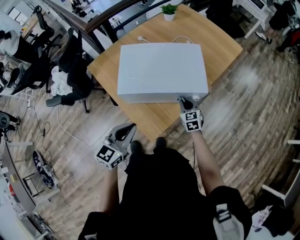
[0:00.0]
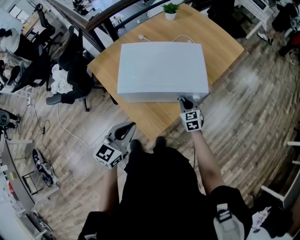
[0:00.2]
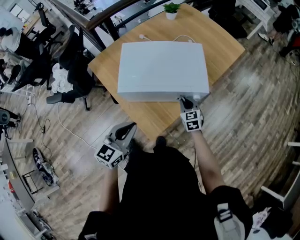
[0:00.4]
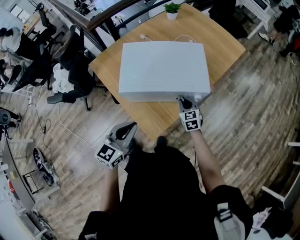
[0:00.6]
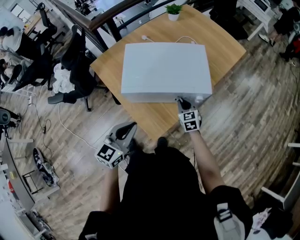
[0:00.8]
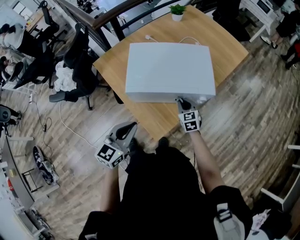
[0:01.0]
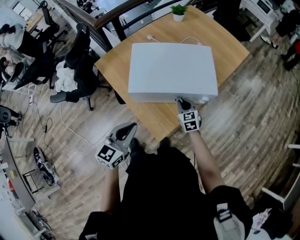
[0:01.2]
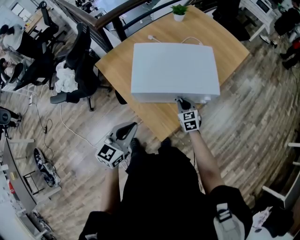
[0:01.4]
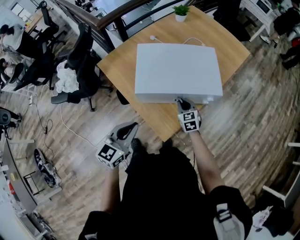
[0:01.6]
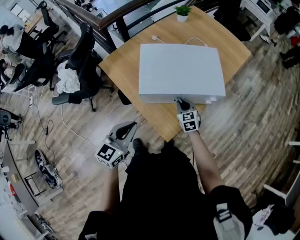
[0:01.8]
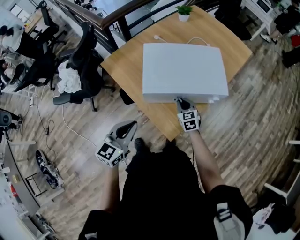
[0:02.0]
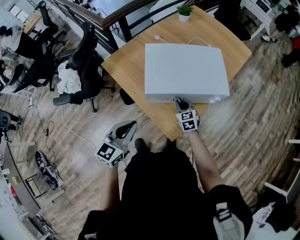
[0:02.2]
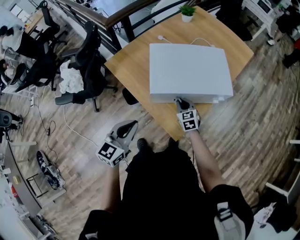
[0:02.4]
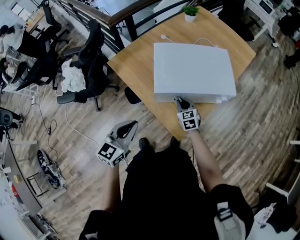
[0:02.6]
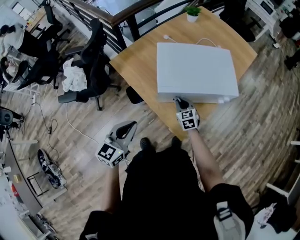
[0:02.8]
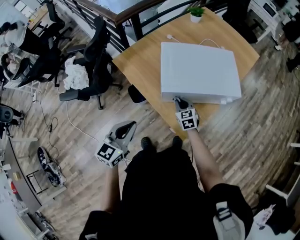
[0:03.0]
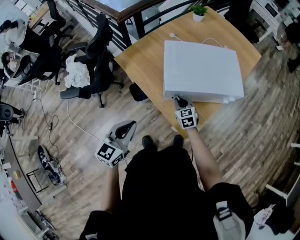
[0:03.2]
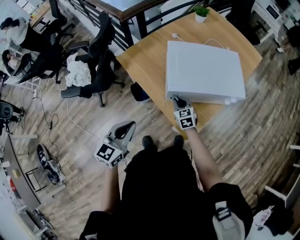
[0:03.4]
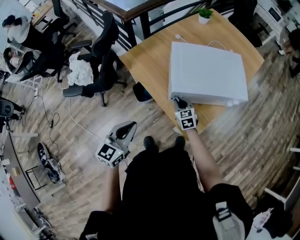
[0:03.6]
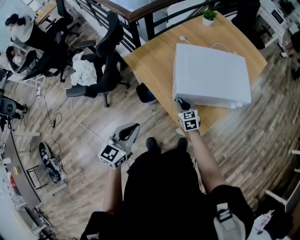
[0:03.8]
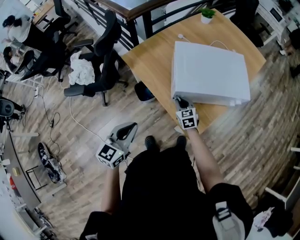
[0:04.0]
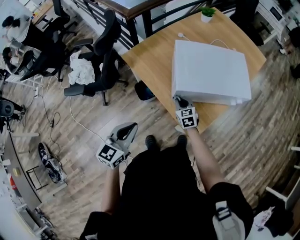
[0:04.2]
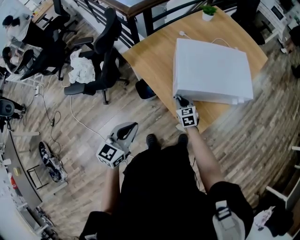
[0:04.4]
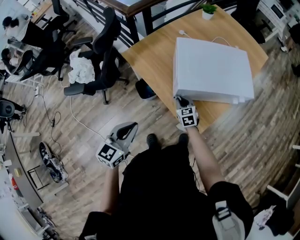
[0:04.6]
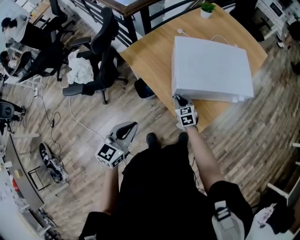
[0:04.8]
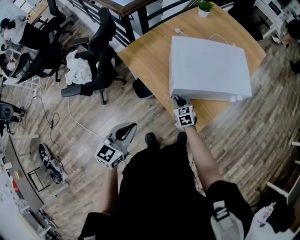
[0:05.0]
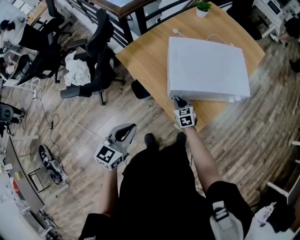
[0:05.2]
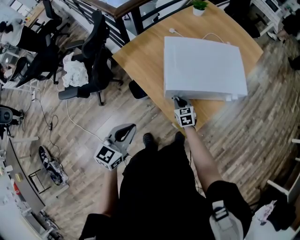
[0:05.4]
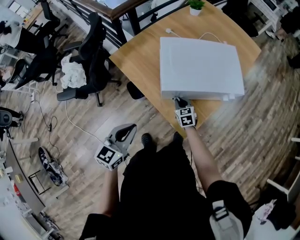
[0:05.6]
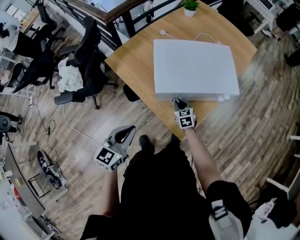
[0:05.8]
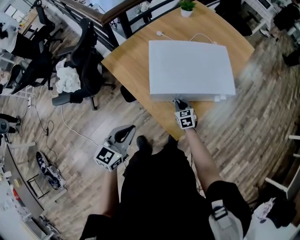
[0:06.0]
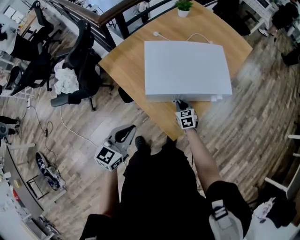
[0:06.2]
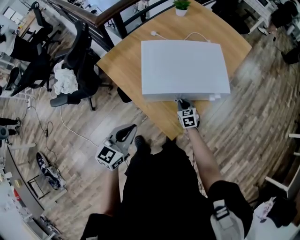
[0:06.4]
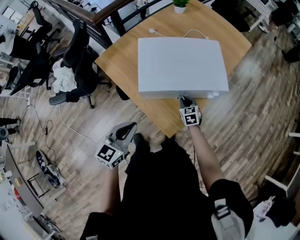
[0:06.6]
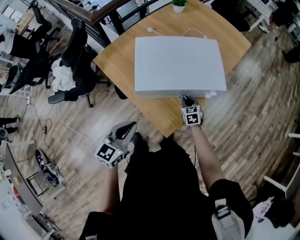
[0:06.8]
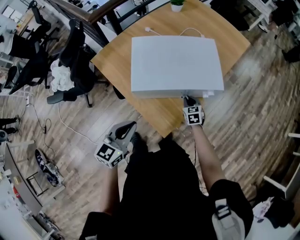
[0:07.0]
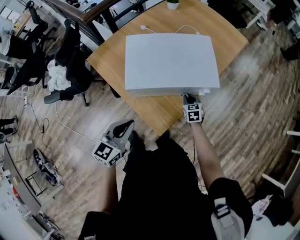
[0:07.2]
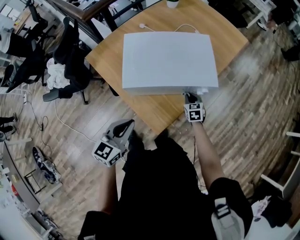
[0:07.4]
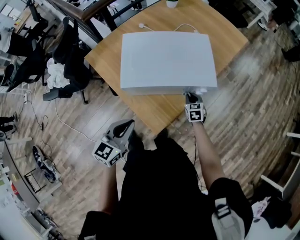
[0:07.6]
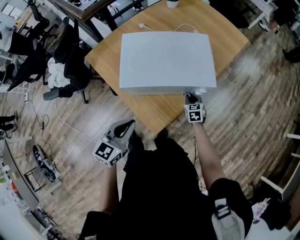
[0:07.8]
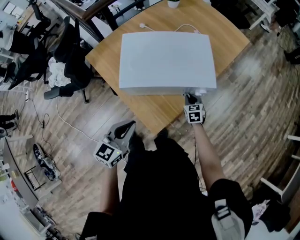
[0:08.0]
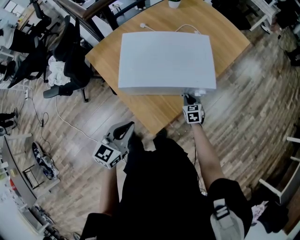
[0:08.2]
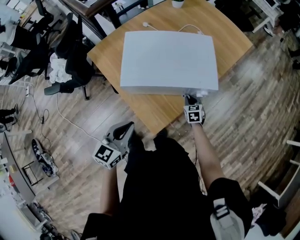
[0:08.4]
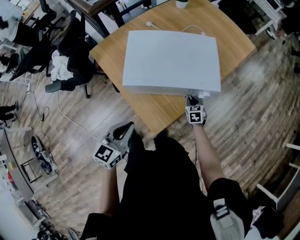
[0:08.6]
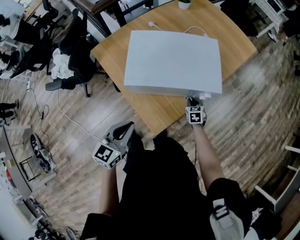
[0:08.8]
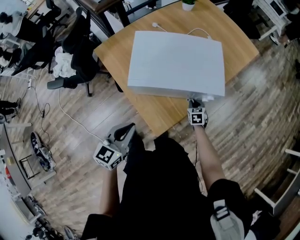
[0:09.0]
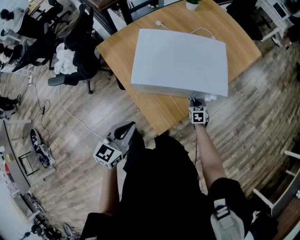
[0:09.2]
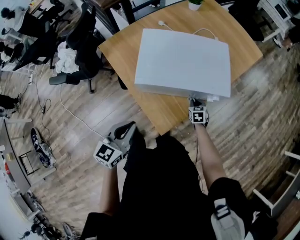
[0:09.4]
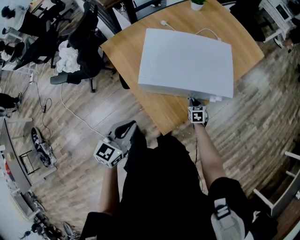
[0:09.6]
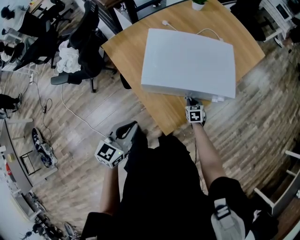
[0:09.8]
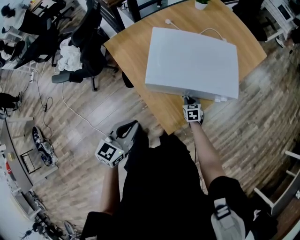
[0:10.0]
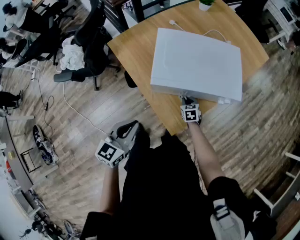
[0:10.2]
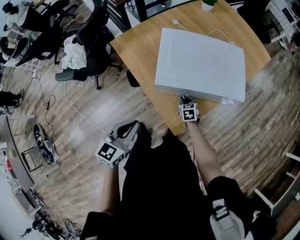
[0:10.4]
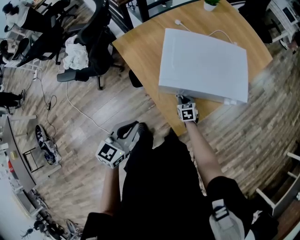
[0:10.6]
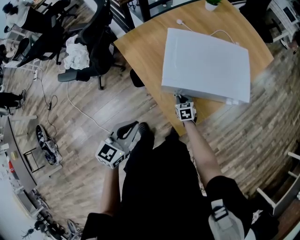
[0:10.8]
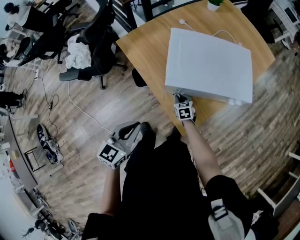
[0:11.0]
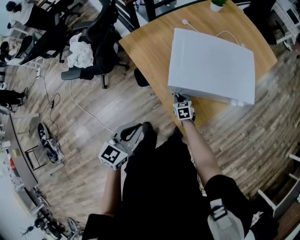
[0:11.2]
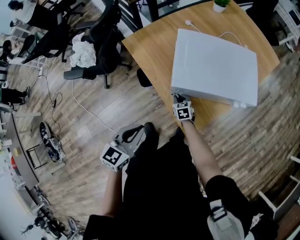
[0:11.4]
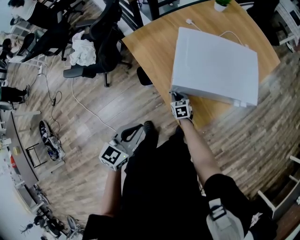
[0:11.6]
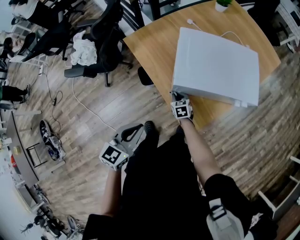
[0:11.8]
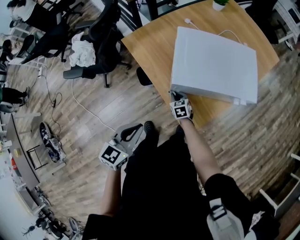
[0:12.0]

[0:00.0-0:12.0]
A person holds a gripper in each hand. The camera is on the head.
0.0 to 1.6 s: Both grippers move to the left, roughly 10 cm.
1.6 to 3.0 s: The two grippers go about 15 cm to the left.
3.0 to 4.4 s: Both grippers move to the left, some 5 cm.
4.4 to 6.0 s: The grippers both shift to the right by roughly 10 cm.
6.0 to 7.6 s: Both grippers travel together to the right, about 15 cm.
7.6 to 9.0 s: The grippers make only small movements.
9.0 to 10.4 s: The right gripper shifts about 20 cm to the left; the left gripper goes approximately 10 cm to the left.
10.4 to 12.0 s: The right gripper goes approximately 15 cm to the left. Meanwhile the left gripper moves to the left, about 5 cm.

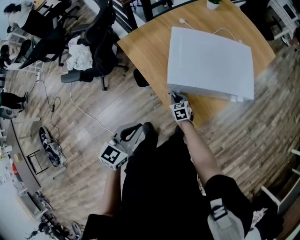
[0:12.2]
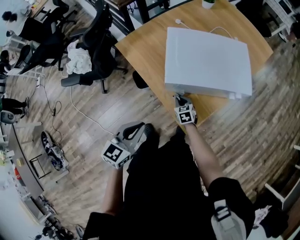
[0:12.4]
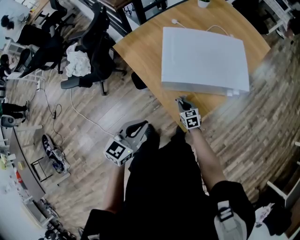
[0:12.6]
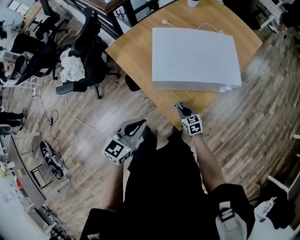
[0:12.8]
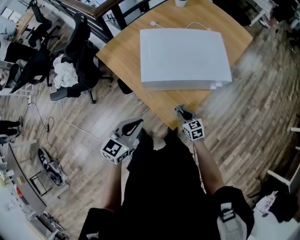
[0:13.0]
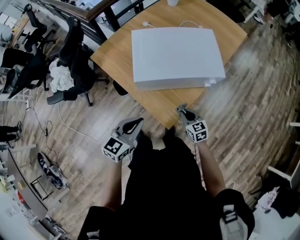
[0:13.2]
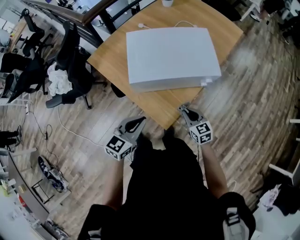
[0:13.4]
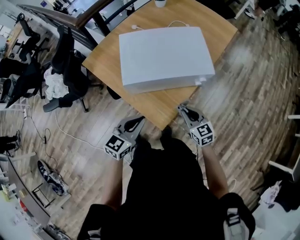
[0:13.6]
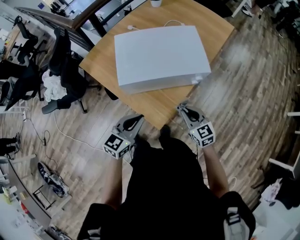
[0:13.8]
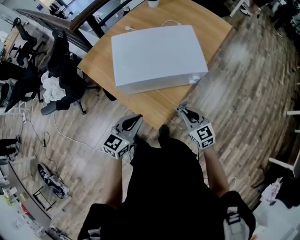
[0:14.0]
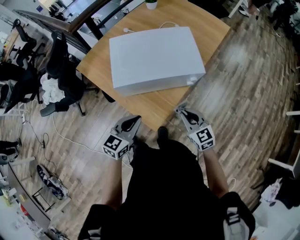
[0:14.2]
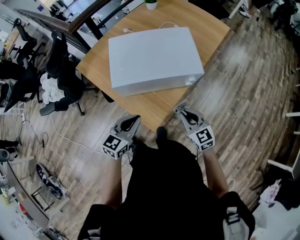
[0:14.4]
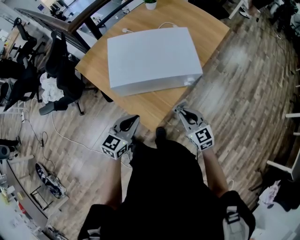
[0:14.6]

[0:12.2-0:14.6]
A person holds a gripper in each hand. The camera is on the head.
12.2 to 13.4 s: The right gripper moves to the right and upward, approximately 25 cm; the left gripper travels to the right by about 15 cm.
13.4 to 14.6 s: The right gripper moves upward and to the right, some 10 cm. The left gripper shifts about 5 cm to the right.

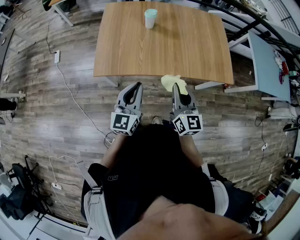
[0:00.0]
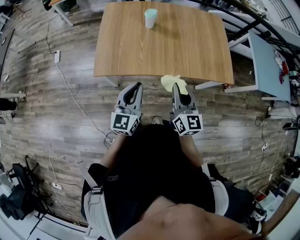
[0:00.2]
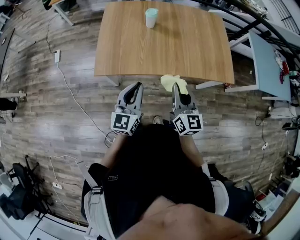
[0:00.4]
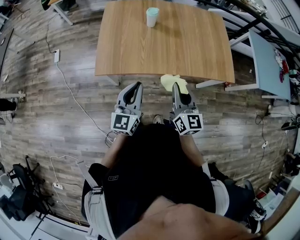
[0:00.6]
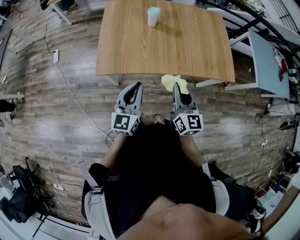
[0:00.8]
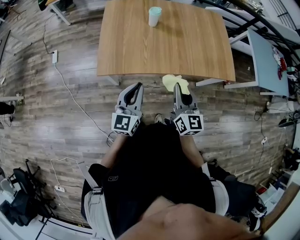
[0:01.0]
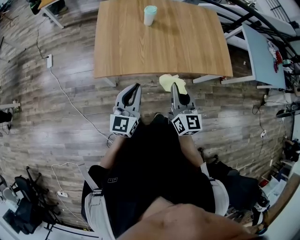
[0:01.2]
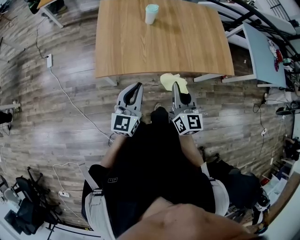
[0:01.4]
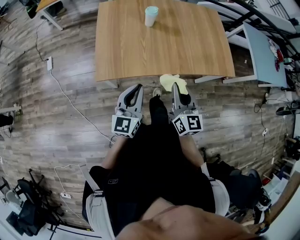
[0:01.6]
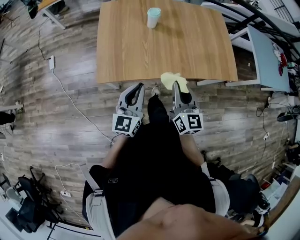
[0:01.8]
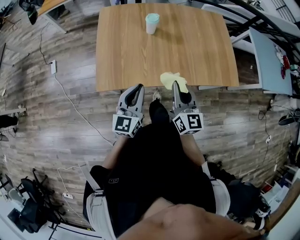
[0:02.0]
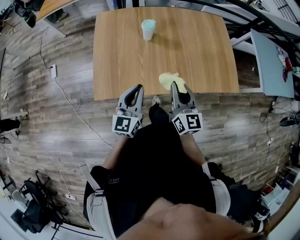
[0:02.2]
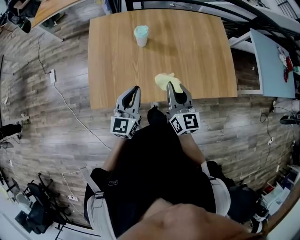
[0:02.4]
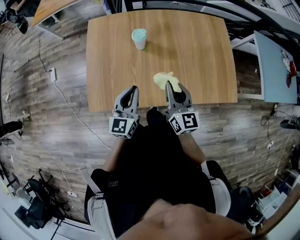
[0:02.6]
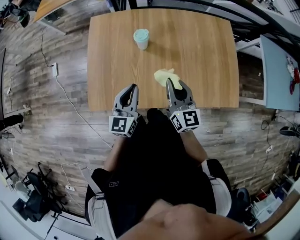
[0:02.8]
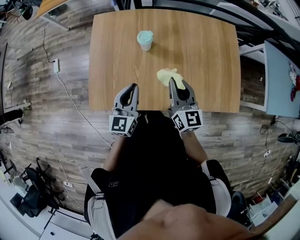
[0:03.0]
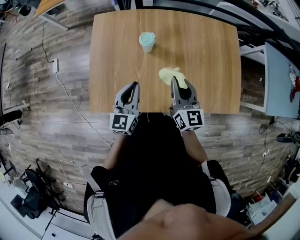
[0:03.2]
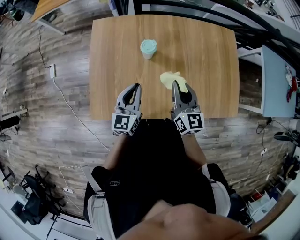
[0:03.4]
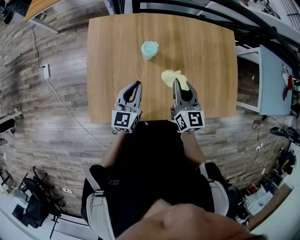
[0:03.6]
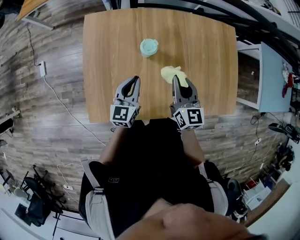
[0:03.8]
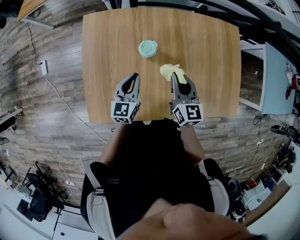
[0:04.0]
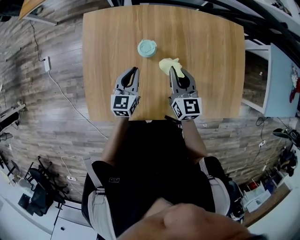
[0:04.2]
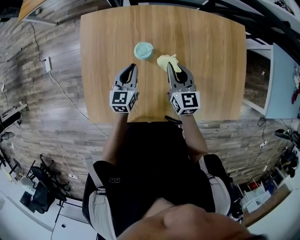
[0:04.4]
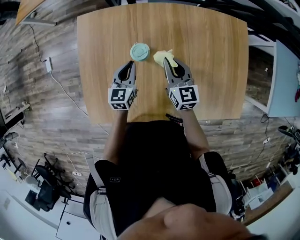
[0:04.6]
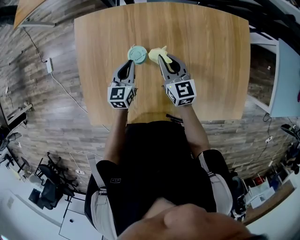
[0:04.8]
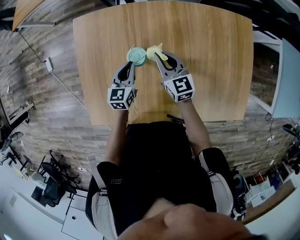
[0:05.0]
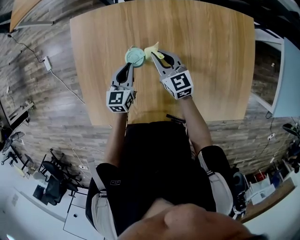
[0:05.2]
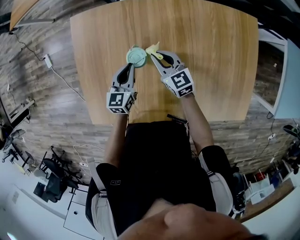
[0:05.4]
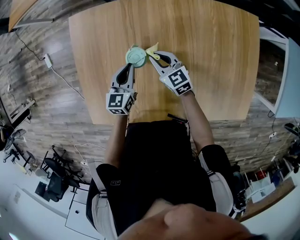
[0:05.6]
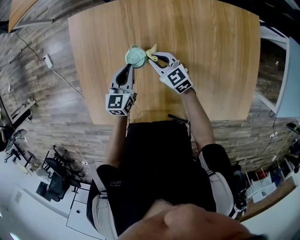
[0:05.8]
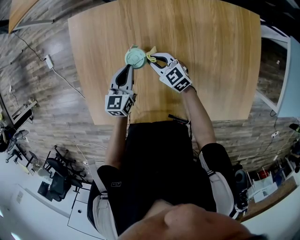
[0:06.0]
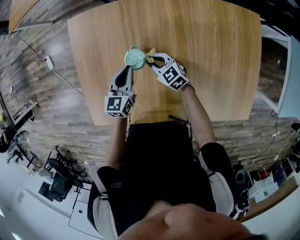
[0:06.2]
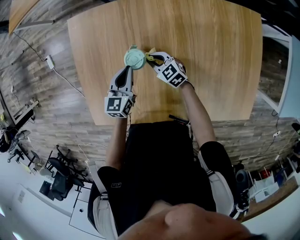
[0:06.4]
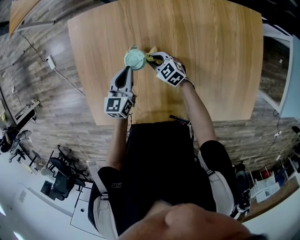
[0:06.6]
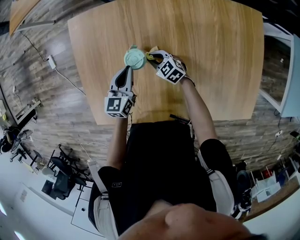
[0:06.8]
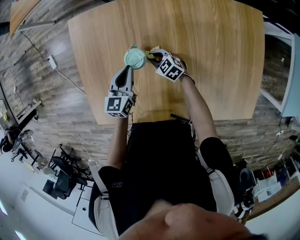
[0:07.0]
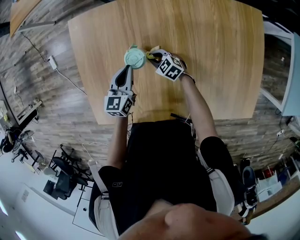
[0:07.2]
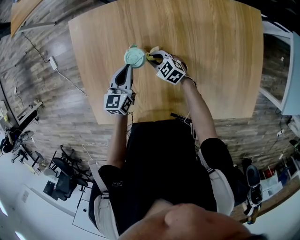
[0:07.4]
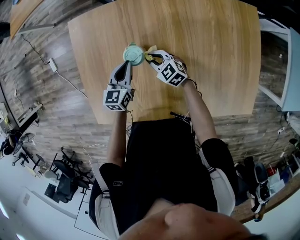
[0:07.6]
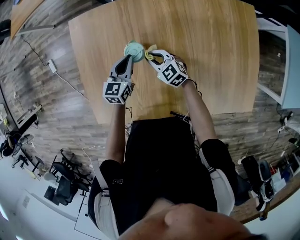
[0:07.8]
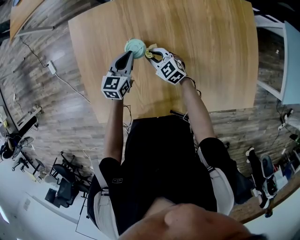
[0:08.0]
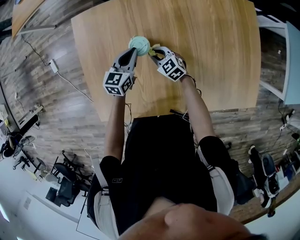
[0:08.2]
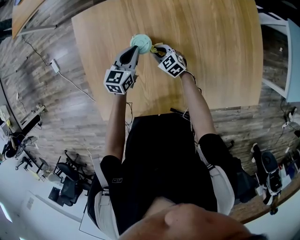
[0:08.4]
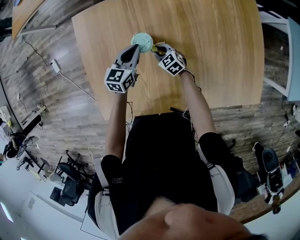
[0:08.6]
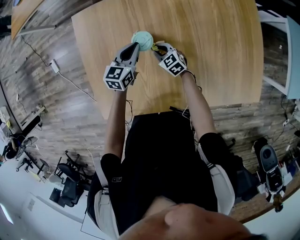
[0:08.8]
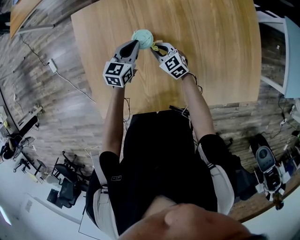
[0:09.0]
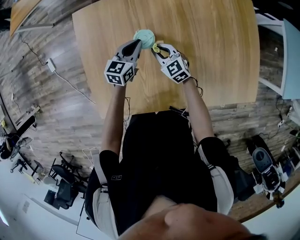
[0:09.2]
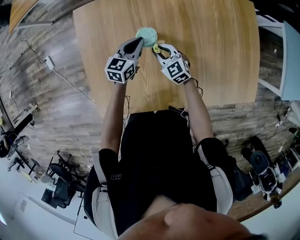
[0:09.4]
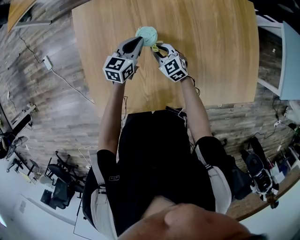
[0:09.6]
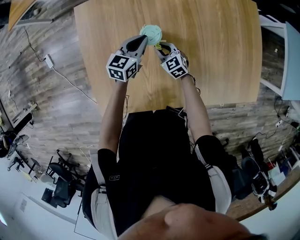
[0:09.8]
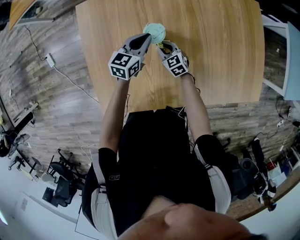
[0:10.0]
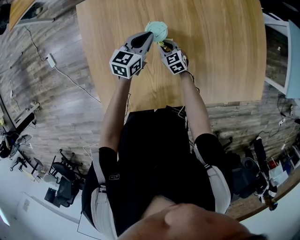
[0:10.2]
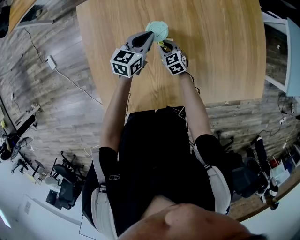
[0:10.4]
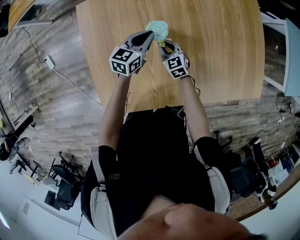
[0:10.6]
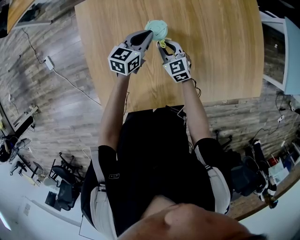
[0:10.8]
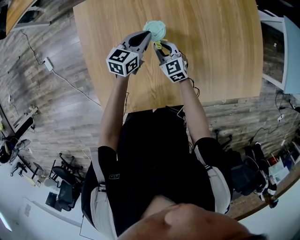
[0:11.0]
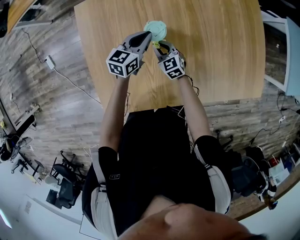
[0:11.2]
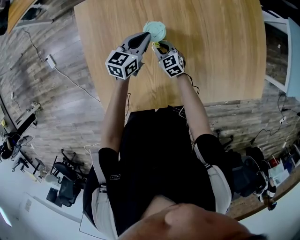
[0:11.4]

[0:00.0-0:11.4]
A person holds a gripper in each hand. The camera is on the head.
0.0 to 1.4 s: The grippers both shift to the left by roughly 5 cm.
1.4 to 2.8 s: Both grippers move forward, roughly 30 cm.
2.8 to 4.2 s: The two grippers go roughly 20 cm forward and downward.
4.2 to 5.6 s: The left gripper goes some 10 cm downward and forward. The right gripper travels downward and forward by some 20 cm, and changes its angle by some 30 degrees.
5.6 to 7.2 s: The right gripper moves downward, some 15 cm, and turns by roughly 30 degrees.
7.2 to 8.6 s: The right gripper reaches roughly 10 cm upward, then returns.
8.6 to 10.0 s: The right gripper reaches about 10 cm upward, then returns.
10.0 to 11.4 s: The right gripper moves roughly 10 cm upward and comes back.
